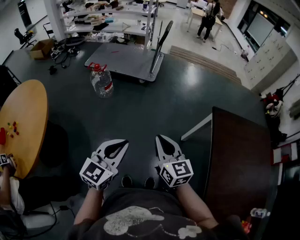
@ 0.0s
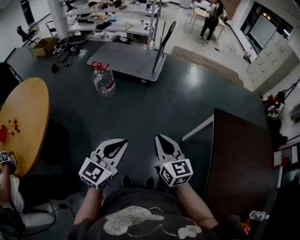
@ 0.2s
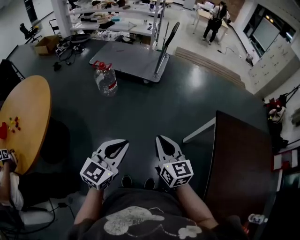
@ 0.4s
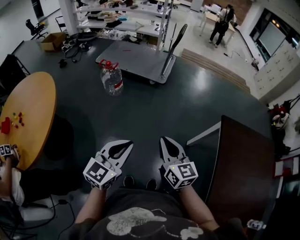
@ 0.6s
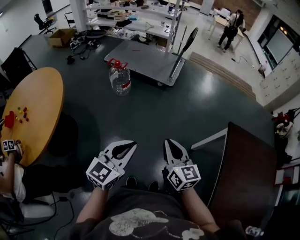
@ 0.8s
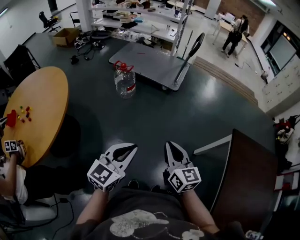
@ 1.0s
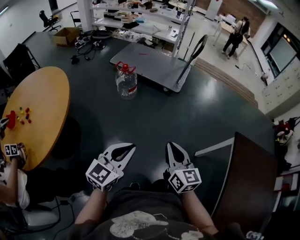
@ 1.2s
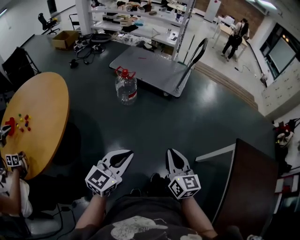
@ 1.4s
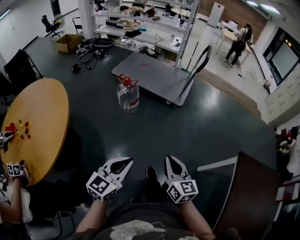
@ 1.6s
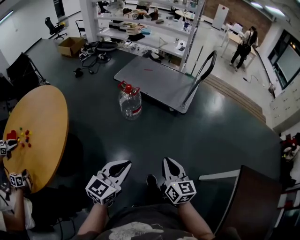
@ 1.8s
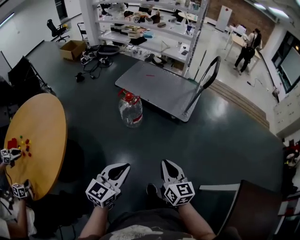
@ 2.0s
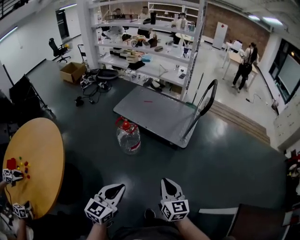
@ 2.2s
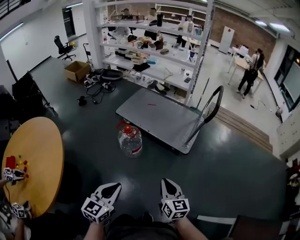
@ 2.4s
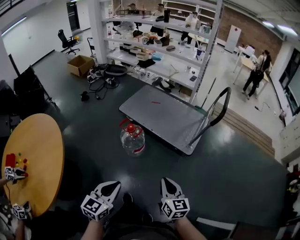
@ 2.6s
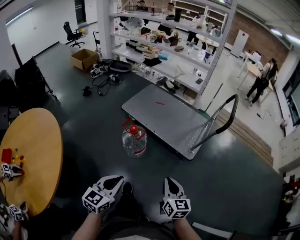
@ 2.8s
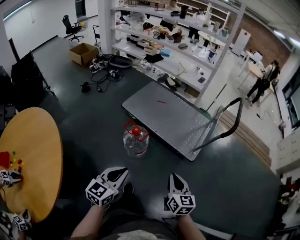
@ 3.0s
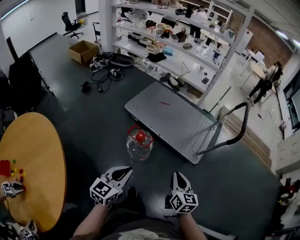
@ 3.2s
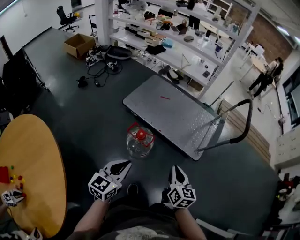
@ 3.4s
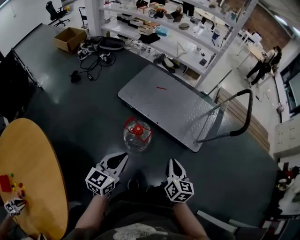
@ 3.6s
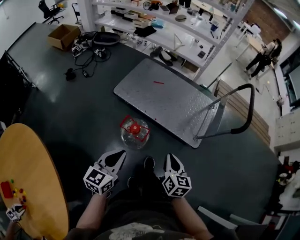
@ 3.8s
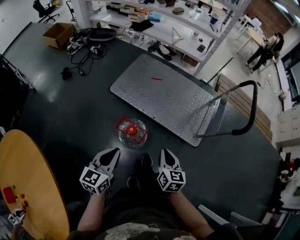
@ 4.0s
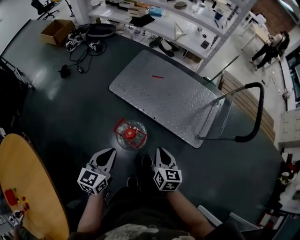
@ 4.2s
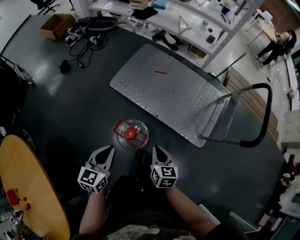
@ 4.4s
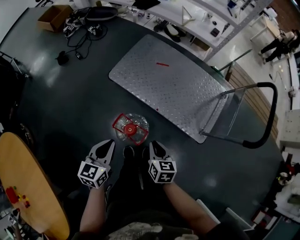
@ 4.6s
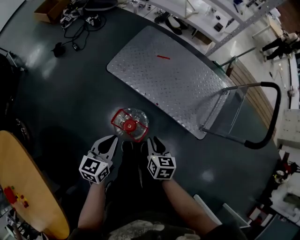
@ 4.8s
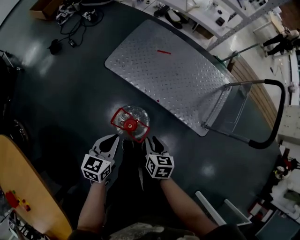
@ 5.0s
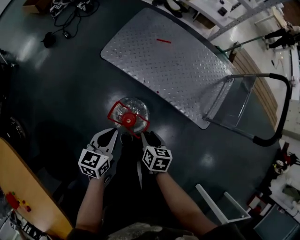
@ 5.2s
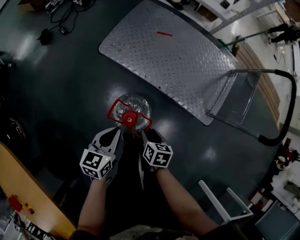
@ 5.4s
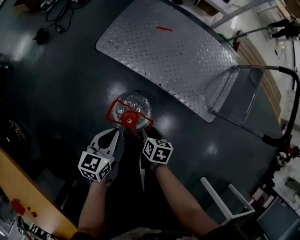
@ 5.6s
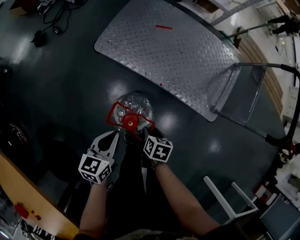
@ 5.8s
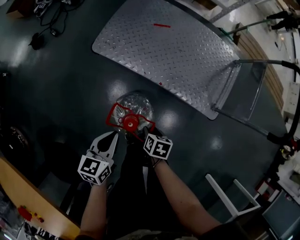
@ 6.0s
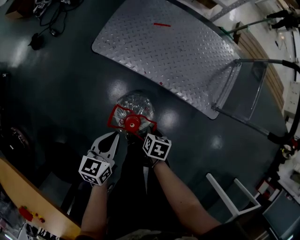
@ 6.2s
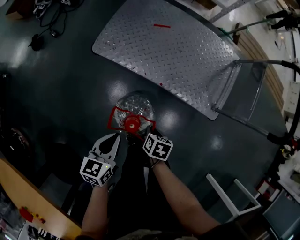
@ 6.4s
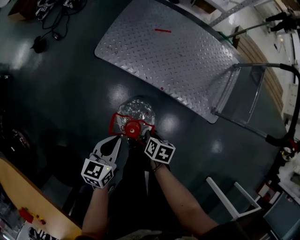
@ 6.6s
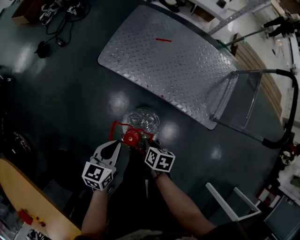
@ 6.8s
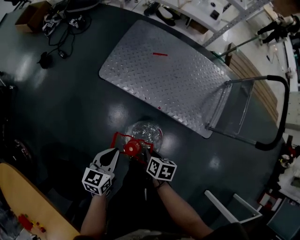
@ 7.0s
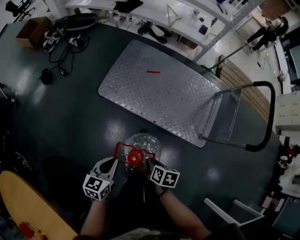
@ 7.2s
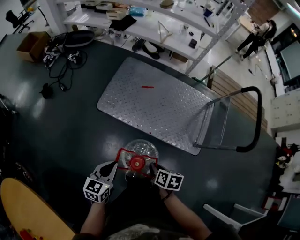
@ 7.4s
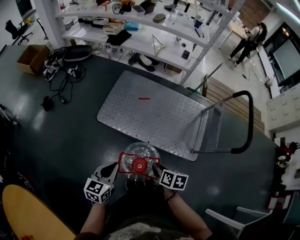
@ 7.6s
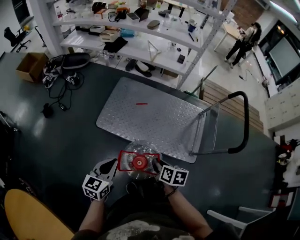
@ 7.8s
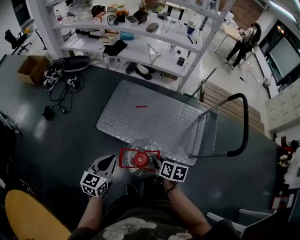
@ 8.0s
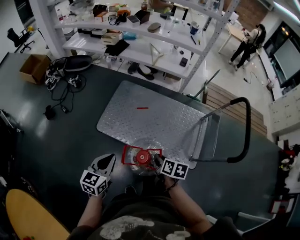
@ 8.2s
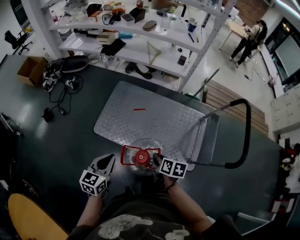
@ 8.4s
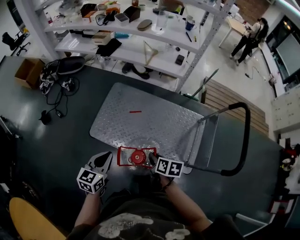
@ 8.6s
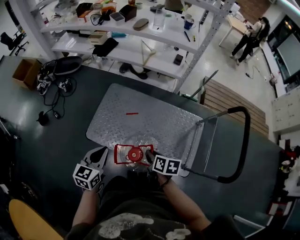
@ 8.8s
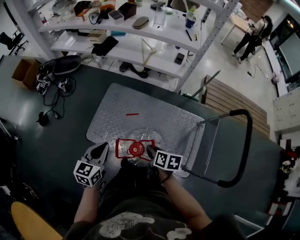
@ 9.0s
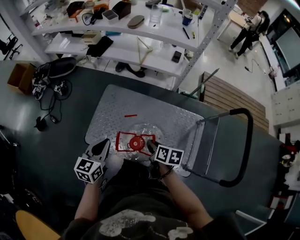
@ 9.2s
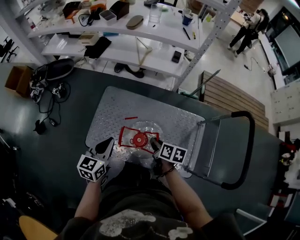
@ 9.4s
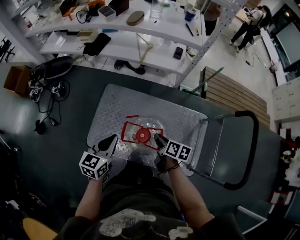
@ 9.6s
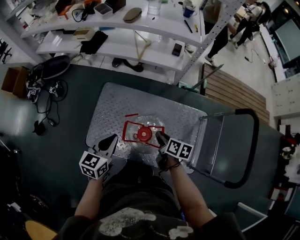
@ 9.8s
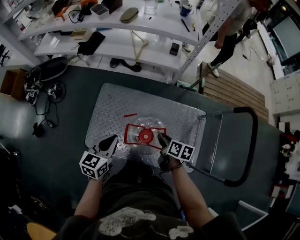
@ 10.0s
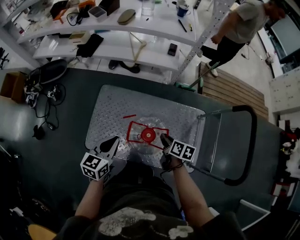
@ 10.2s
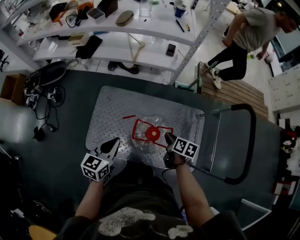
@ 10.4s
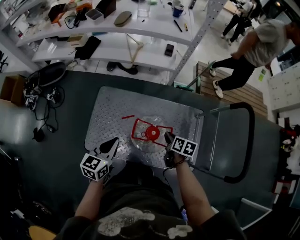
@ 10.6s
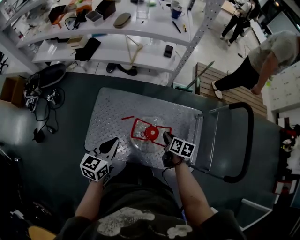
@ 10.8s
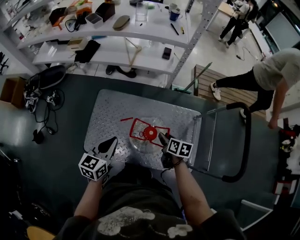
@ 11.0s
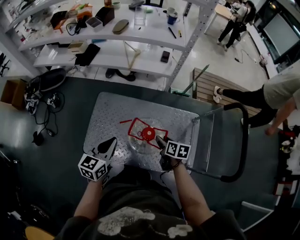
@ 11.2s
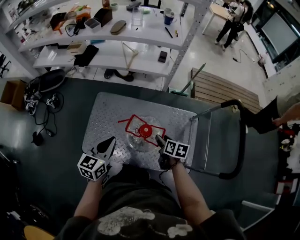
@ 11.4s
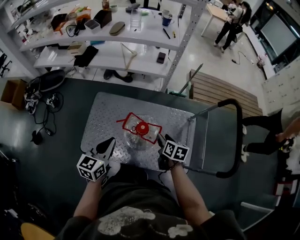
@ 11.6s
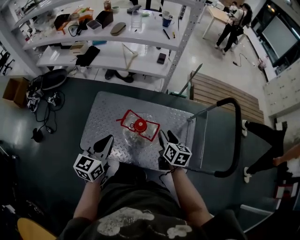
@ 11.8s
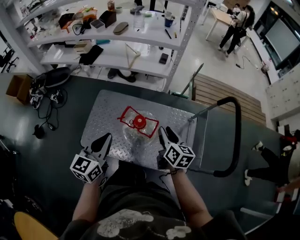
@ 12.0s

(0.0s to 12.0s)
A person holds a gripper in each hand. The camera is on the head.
0.0s - 1.6s: The grippers both shift to the left and forward by about 20 cm.
1.6s - 3.0s: The two grippers travel together, forward, roughly 50 cm.
3.0s - 4.4s: The left gripper heads forward and to the left, covering about 35 cm. The right gripper goes about 40 cm forward, downward and to the left.
4.4s - 6.0s: The two grippers go approximately 25 cm downward. The right gripper angles its fingers downward, by roughly 30 degrees, and opens its fingers.
6.0s - 7.6s: Both grippers travel together upward, roughly 25 cm. The right gripper closes.
7.6s - 9.0s: Both grippers travel together forward, approximately 30 cm.
9.0s - 10.4s: The right gripper heads forward, to the right and downward, covering roughly 15 cm. The left gripper moves forward, some 10 cm.
10.4s - 12.0s: The right gripper moves upward and backward, some 15 cm, turns by approximately 30 degrees, and opens, while the left gripper shifts roughly 15 cm upward, backward and to the right.

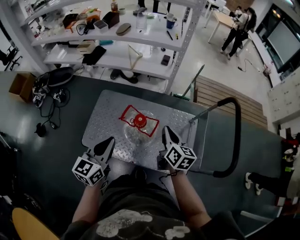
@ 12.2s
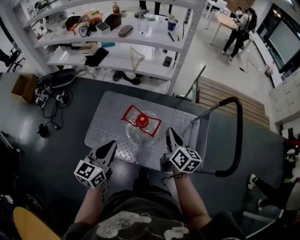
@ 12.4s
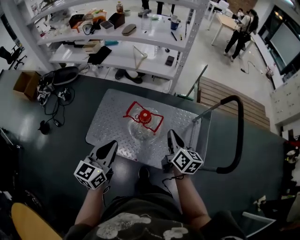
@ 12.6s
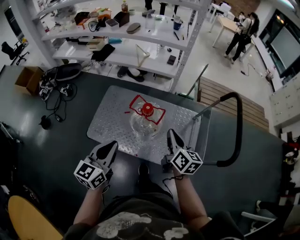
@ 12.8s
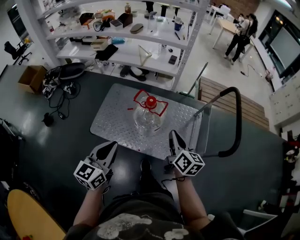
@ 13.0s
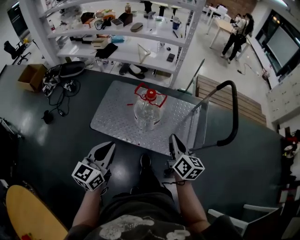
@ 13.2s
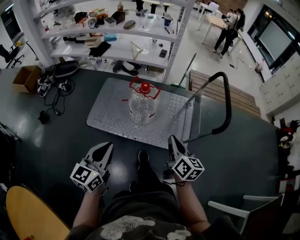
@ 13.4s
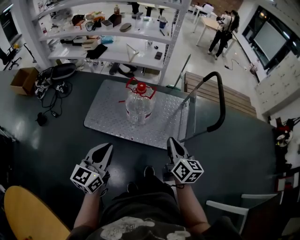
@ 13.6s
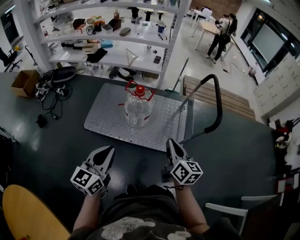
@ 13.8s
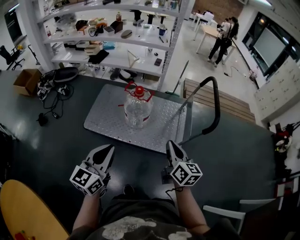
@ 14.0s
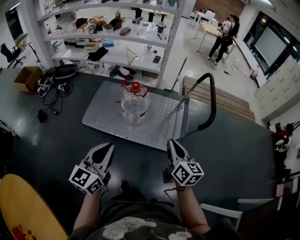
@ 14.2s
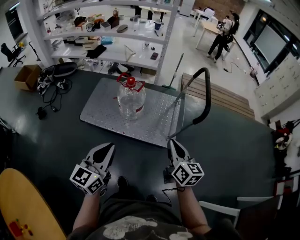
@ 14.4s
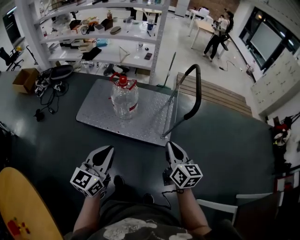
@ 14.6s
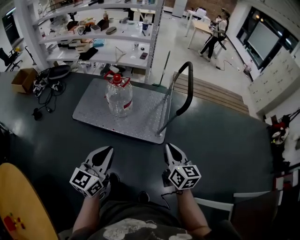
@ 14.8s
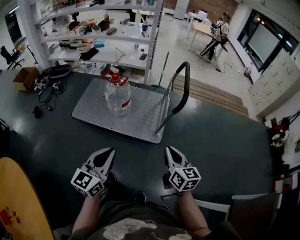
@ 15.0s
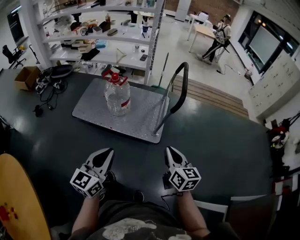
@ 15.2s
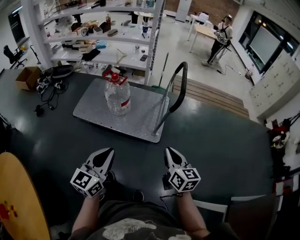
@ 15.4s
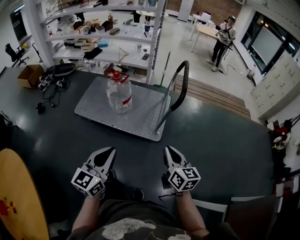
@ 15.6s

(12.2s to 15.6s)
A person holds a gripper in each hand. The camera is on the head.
12.2s - 13.8s: The two grippers go approximately 35 cm backward.
13.8s - 15.6s: Both grippers travel together to the right and backward, roughly 35 cm.

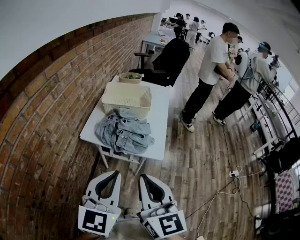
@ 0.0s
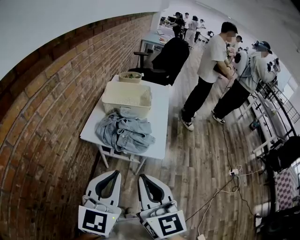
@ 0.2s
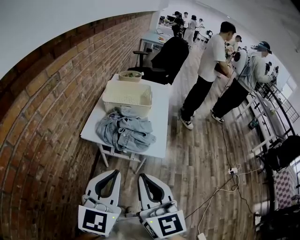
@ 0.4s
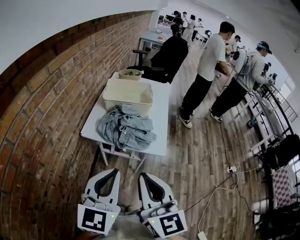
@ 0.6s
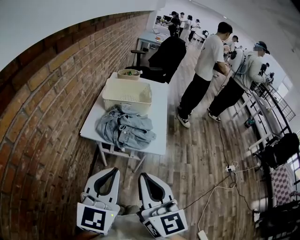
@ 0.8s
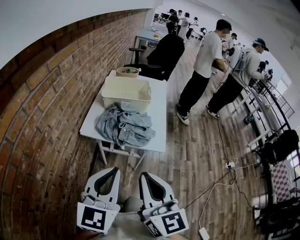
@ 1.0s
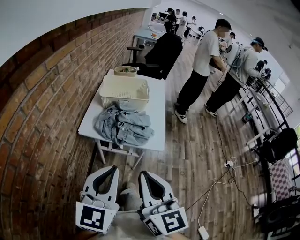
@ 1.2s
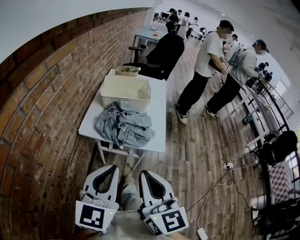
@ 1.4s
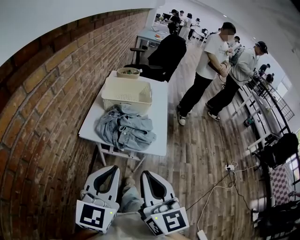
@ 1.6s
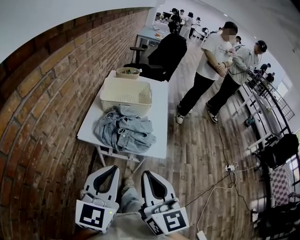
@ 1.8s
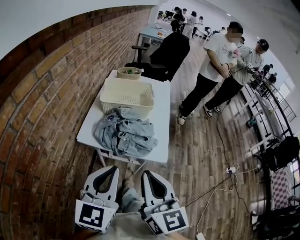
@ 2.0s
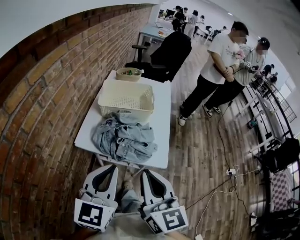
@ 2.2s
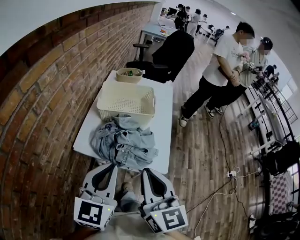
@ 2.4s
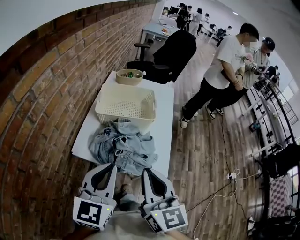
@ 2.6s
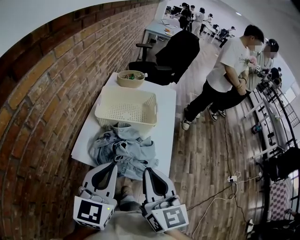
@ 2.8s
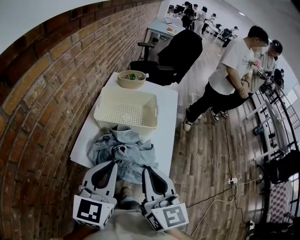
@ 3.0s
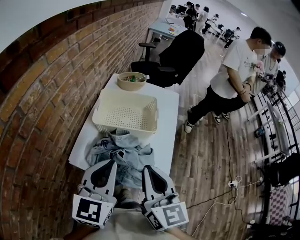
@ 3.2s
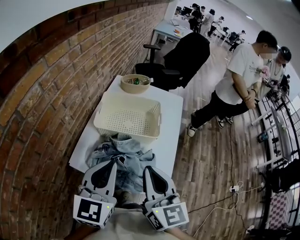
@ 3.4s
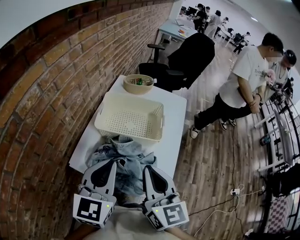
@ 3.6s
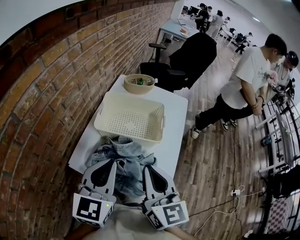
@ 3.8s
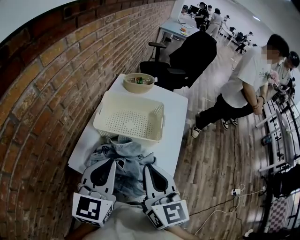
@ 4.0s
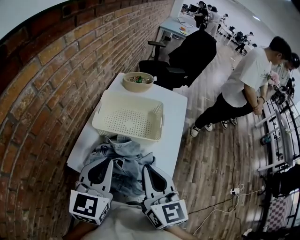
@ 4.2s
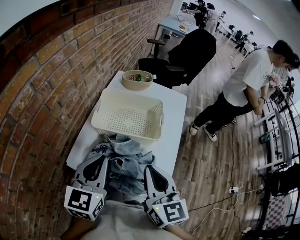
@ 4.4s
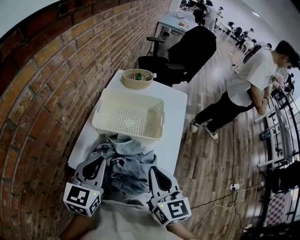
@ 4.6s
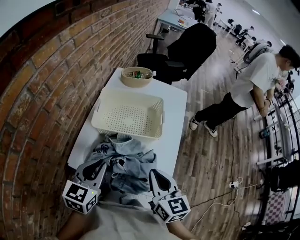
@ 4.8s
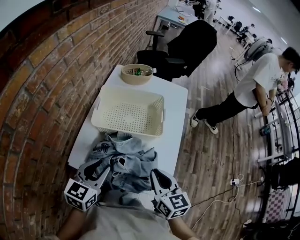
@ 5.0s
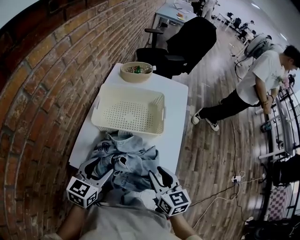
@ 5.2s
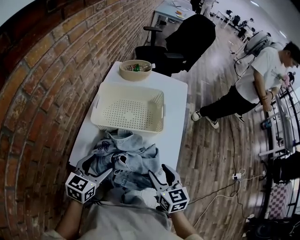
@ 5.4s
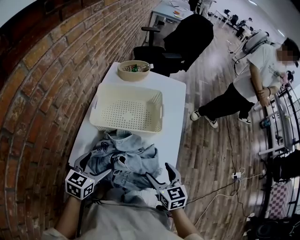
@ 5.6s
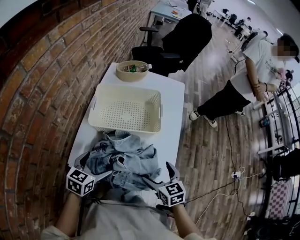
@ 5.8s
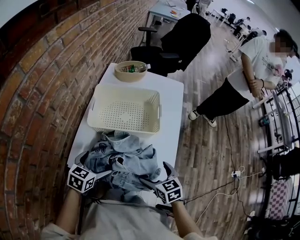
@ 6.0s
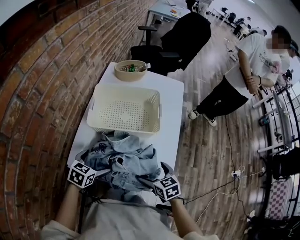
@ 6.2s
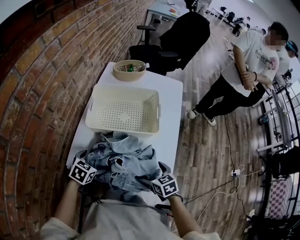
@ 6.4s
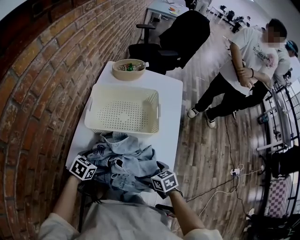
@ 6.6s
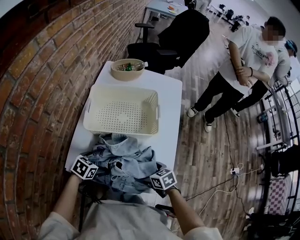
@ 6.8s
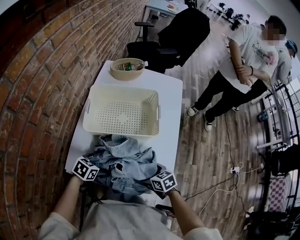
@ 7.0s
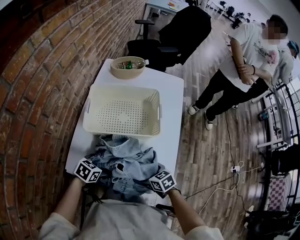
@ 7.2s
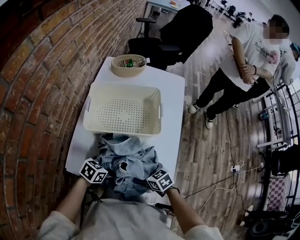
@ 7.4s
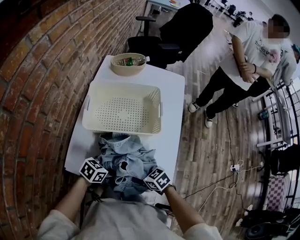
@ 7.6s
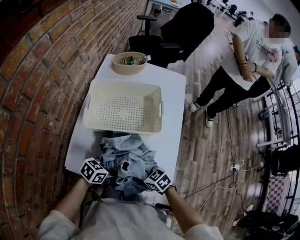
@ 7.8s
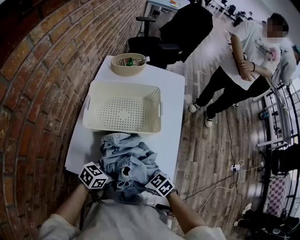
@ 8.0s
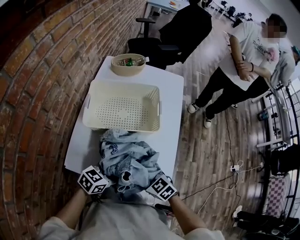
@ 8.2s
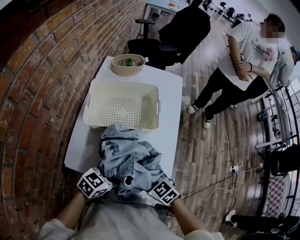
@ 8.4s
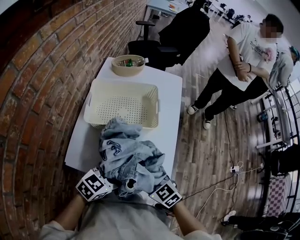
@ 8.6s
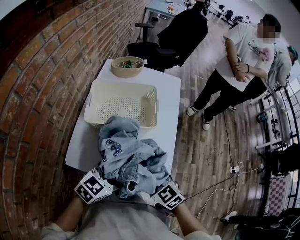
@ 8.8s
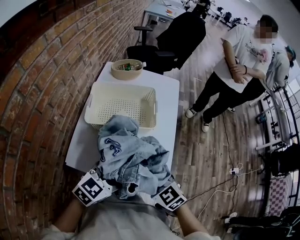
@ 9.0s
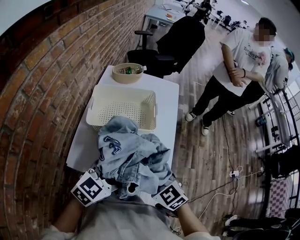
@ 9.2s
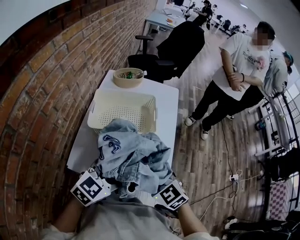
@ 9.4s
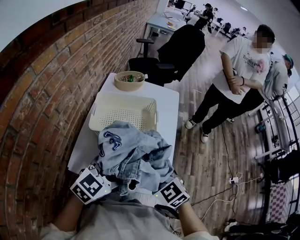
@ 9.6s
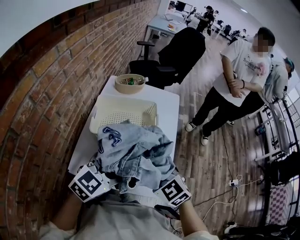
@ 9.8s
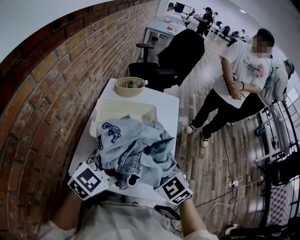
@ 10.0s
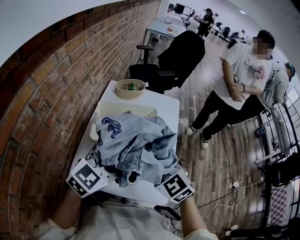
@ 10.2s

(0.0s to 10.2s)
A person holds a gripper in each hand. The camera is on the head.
0.0s - 1.4s: The left gripper ends up roughly 5 cm from where it was.
1.4s - 3.0s: The two grippers go some 25 cm forward.
3.0s - 4.4s: The two grippers go about 10 cm forward.
4.4s - 5.8s: The grippers both shift downward by about 20 cm. The left gripper turns by about 30 degrees, and opens up, while the right gripper rotates about 30 degrees, and opens.
5.8s - 7.2s: Both grippers travel together downward, roughly 10 cm. The left gripper rotates roughly 30 degrees. The right gripper swivels roughly 30 degrees.
7.2s - 8.8s: The grippers both shift upward by approximately 15 cm. The left gripper rotates approximately 30 degrees, and closes its fingers; the right gripper changes its angle by about 30 degrees, and closes its fingers.
8.8s - 10.2s: The two grippers go roughly 20 cm upward and forward. The left gripper turns by about 20 degrees.
